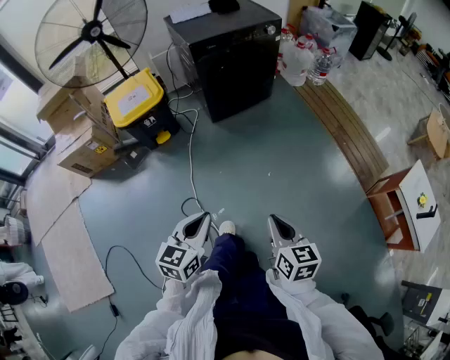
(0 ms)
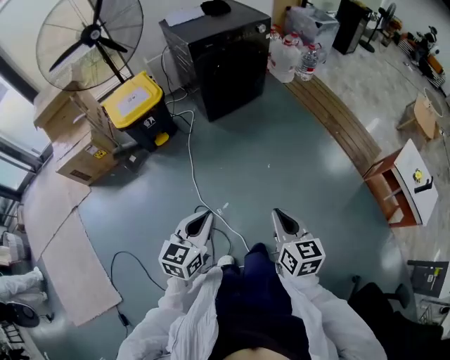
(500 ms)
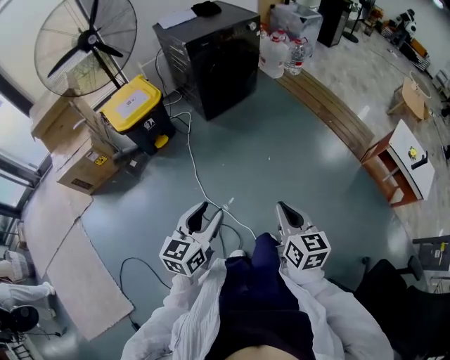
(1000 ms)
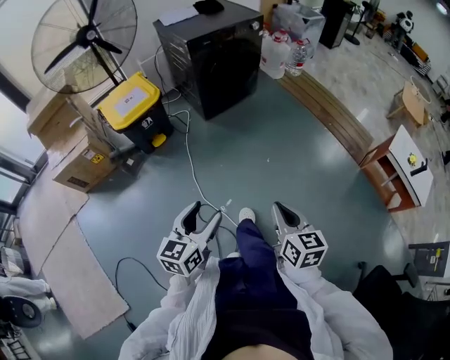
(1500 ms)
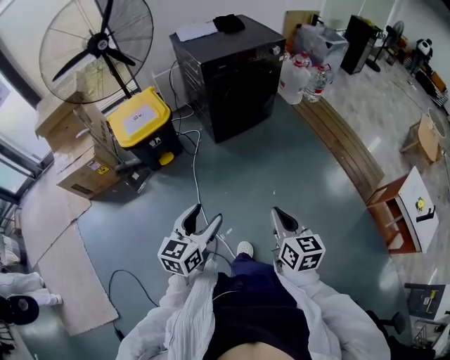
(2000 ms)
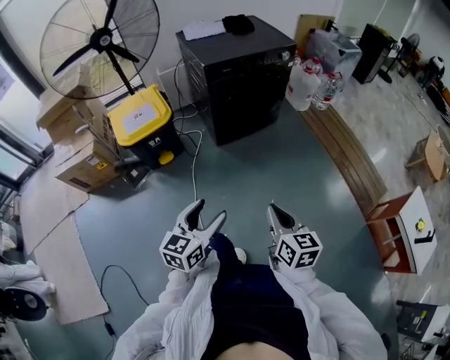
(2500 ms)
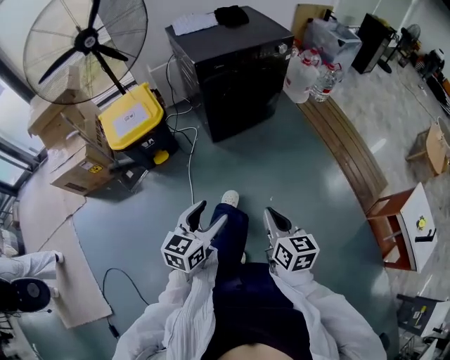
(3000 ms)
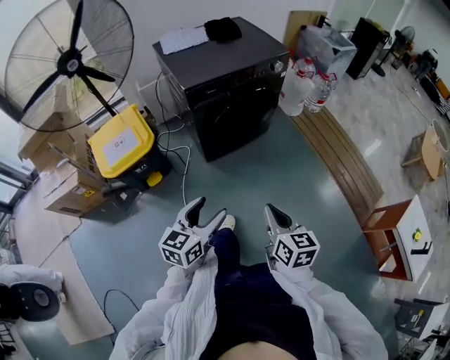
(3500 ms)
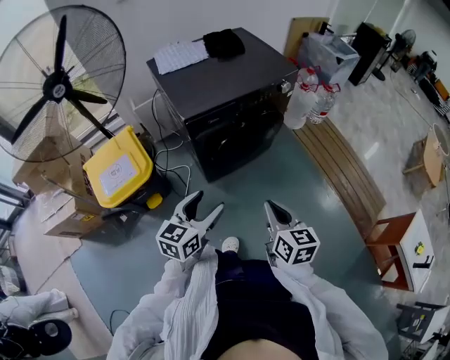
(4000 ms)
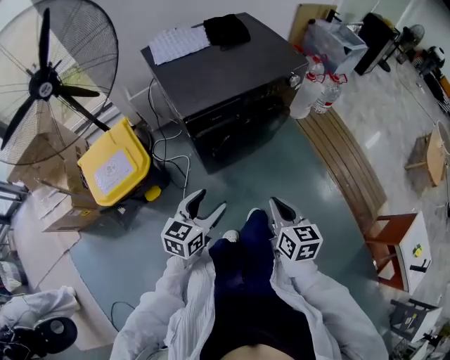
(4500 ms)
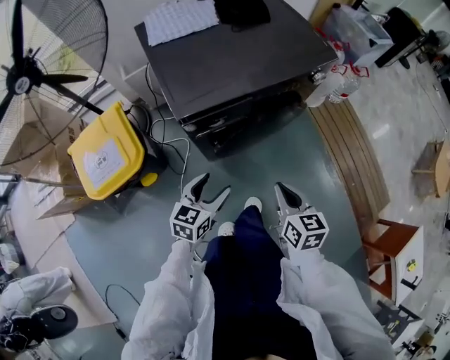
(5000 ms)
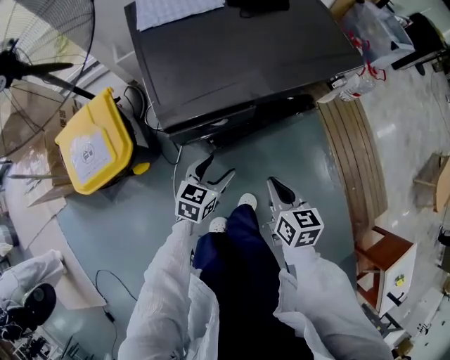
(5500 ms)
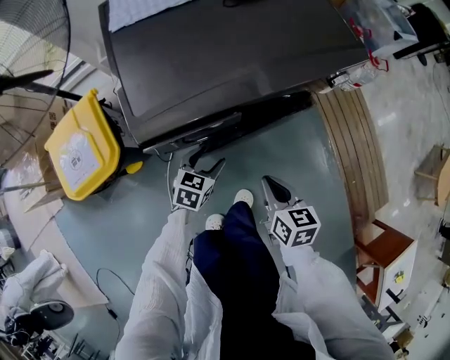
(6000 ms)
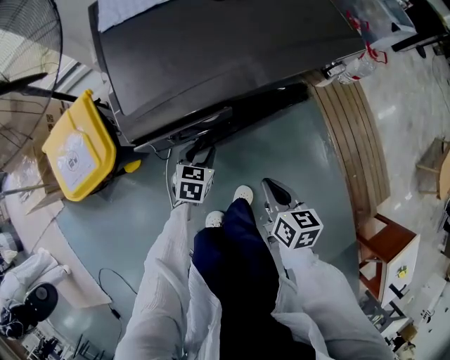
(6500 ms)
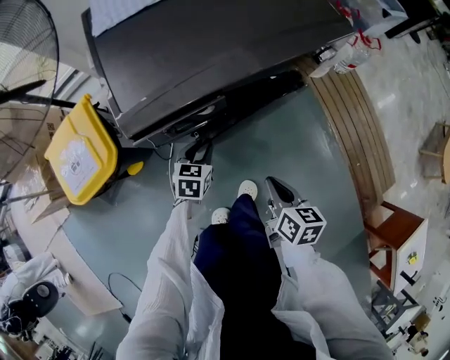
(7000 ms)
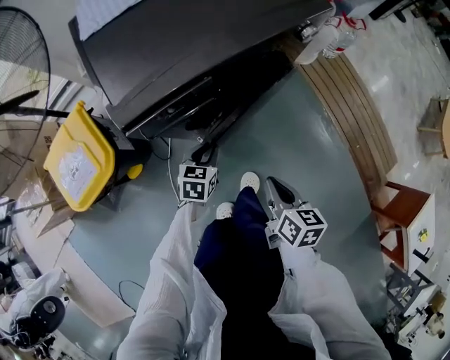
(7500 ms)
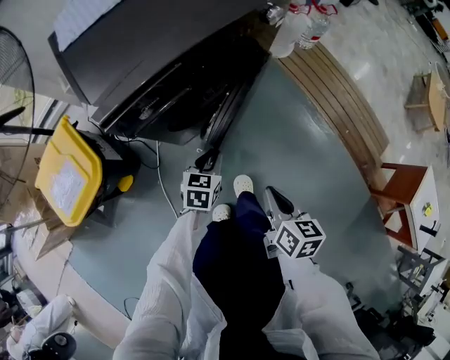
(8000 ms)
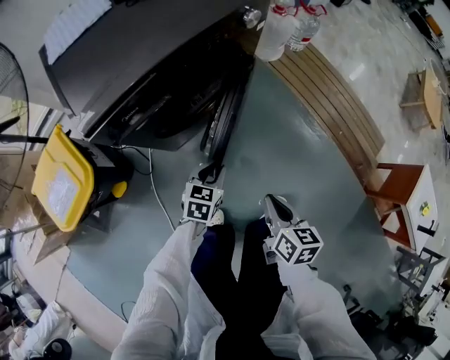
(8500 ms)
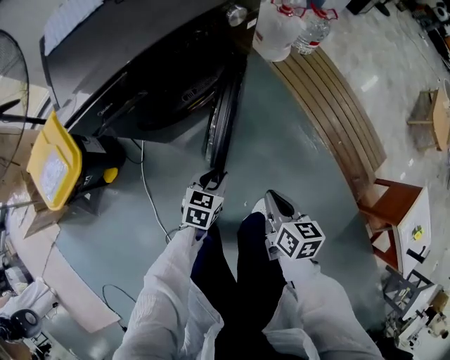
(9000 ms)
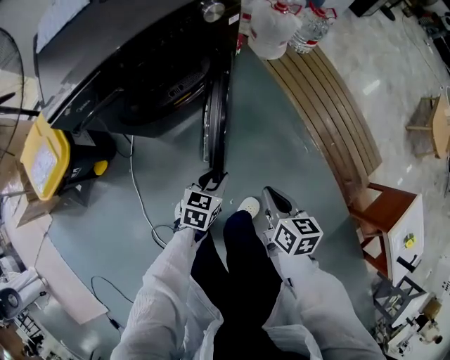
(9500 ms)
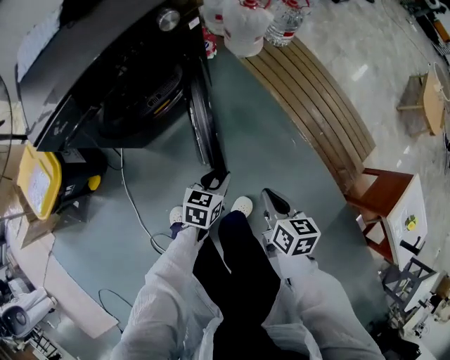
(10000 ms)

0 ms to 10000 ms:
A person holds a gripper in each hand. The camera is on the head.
0 ms to 2000 ms: Both grippers move to the left, approximately 10 cm. The right gripper travels backward and back again, approximately 15 cm each way. Meanwhile the left gripper reaches roughly 10 cm backward, then returns, and opens up.
2000 ms to 4000 ms: The pair of grippers is taken forward, approximately 40 cm.
4000 ms to 6000 ms: The grippers both shift forward and downward by some 40 cm. The left gripper rotates approximately 30 degrees; the right gripper rotates approximately 20 degrees.
6000 ms to 8000 ms: The right gripper moves backward, roughly 20 cm, and changes its angle by about 30 degrees. Meanwhile the left gripper moves backward and to the right, roughly 10 cm, and closes.
8000 ms to 10000 ms: The two grippers go some 30 cm to the right.

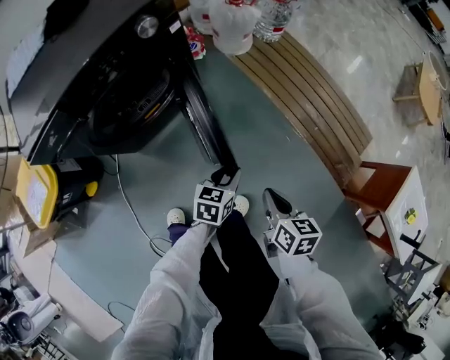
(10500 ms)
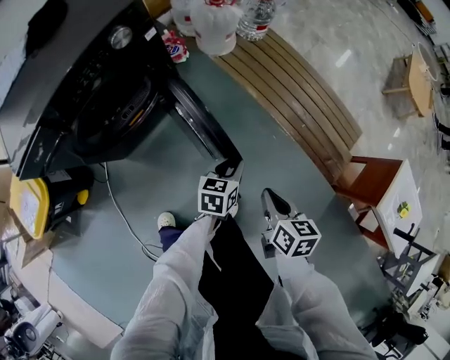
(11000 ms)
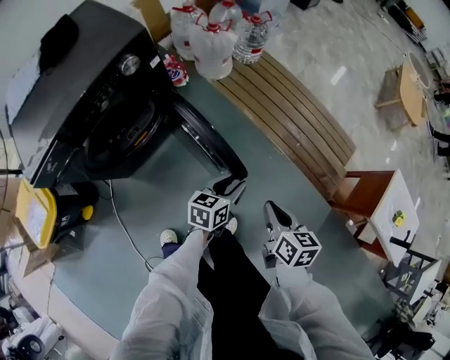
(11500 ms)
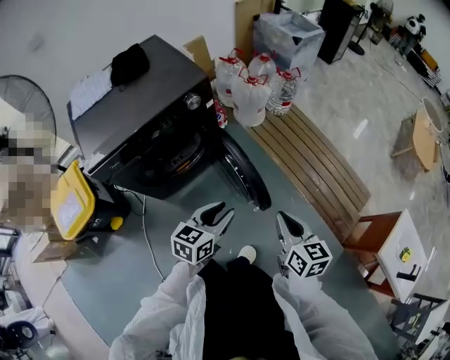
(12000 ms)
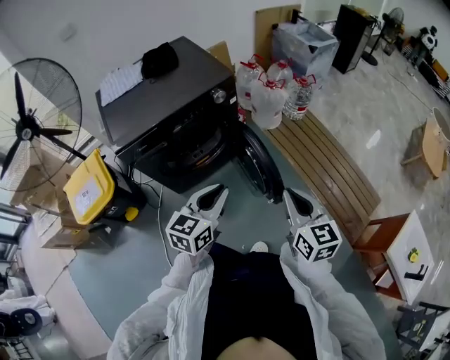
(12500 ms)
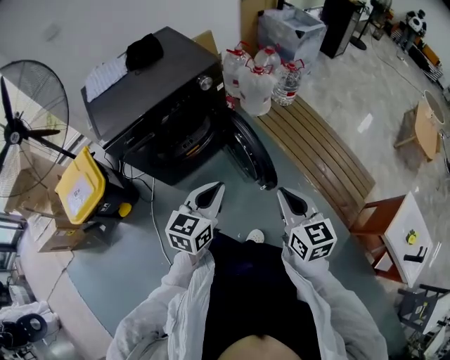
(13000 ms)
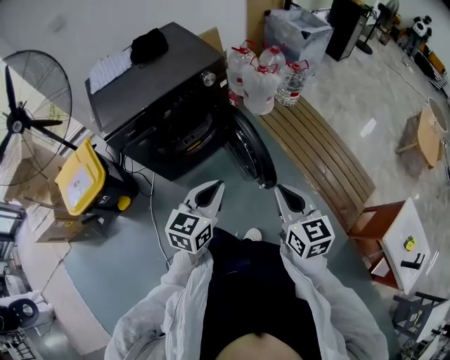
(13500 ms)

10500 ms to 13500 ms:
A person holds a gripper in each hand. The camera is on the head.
10500 ms to 12000 ms: Both grippers travel together upward, some 20 cm. The right gripper rotates about 20 degrees.
12000 ms to 13500 ms: The left gripper moves upward and backward, approximately 10 cm, and closes, while the right gripper shifts some 5 cm upward.

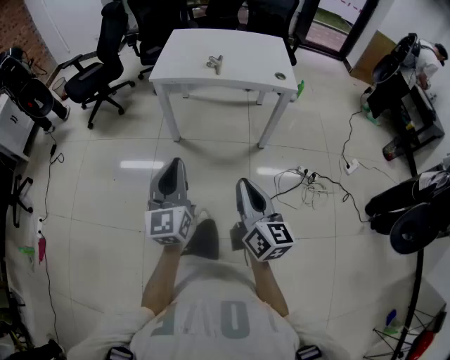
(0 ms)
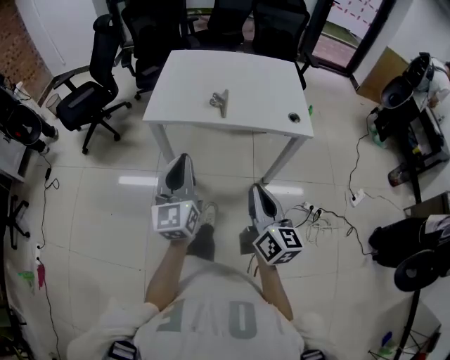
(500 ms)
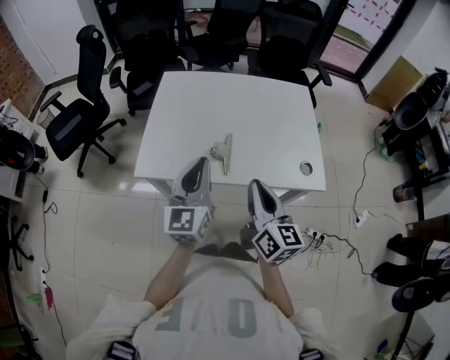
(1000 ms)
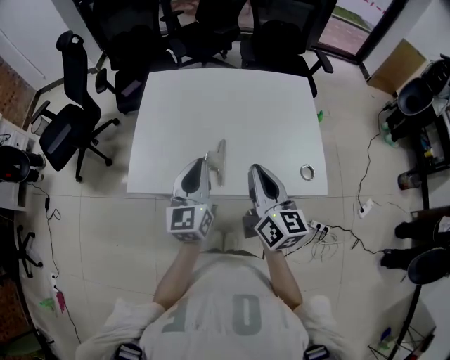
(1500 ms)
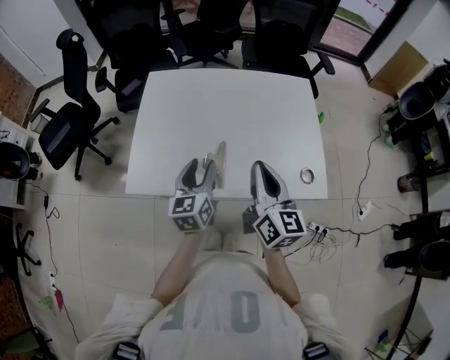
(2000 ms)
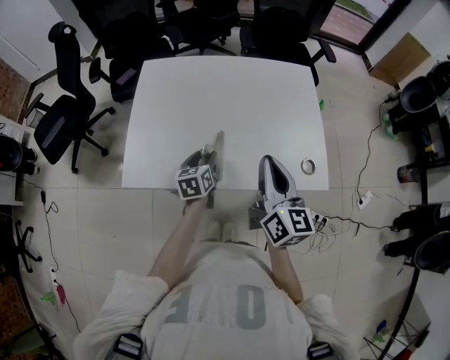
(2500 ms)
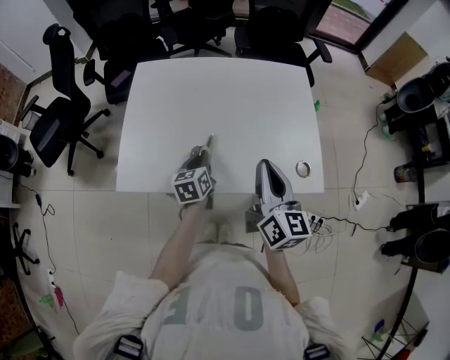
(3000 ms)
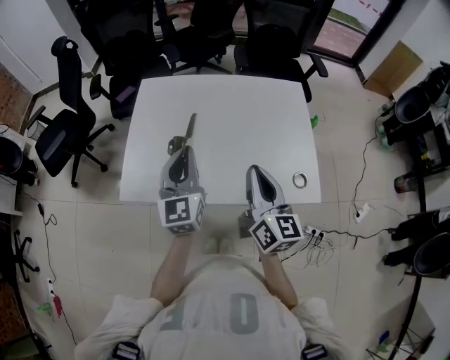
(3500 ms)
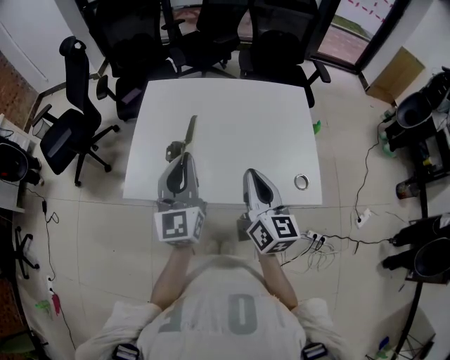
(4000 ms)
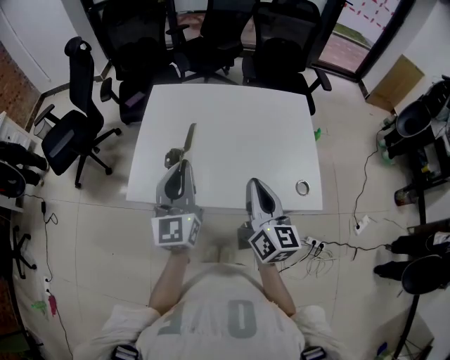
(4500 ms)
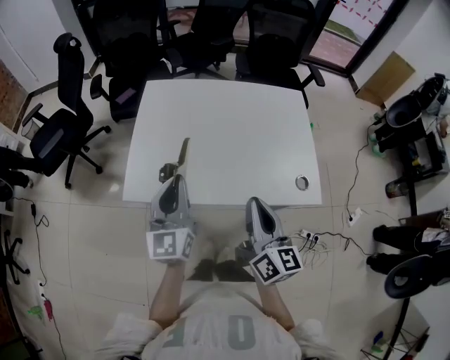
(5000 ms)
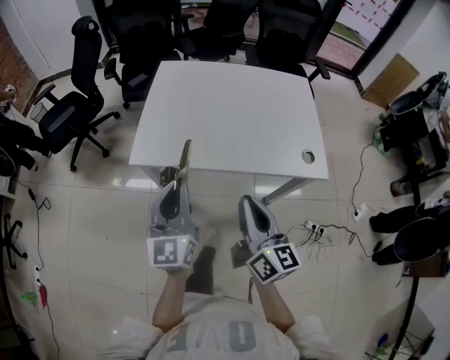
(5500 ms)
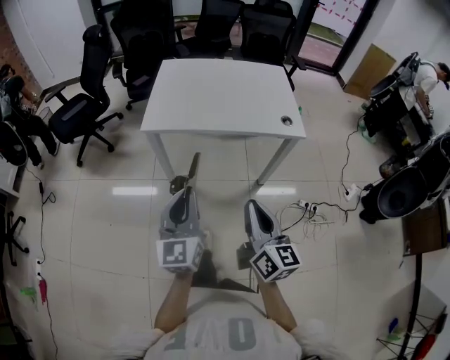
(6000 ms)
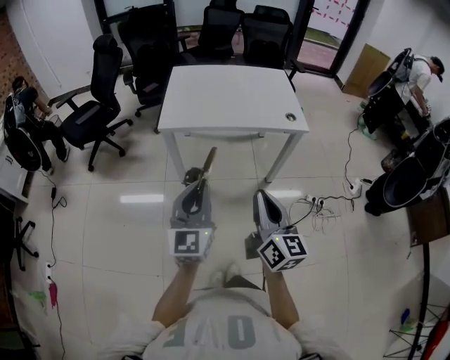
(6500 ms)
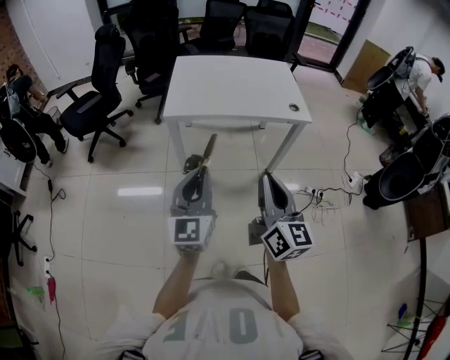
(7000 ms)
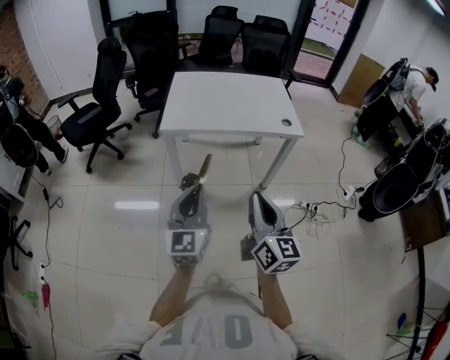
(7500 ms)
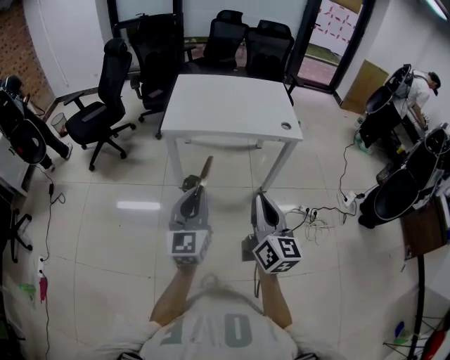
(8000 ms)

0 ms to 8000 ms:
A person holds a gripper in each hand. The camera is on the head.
0 ms to 2000 ms: The two grippers travel together, forward, about 60 cm. The left gripper turns by approximately 30 degrees, and opens its fingers.
2000 ms to 4000 ms: The left gripper heads upward, covering some 15 cm, changes its angle by some 30 degrees, and closes its fingers.
4000 ms to 6000 ms: Both grippers are carried backward, roughly 40 cm.
6000 ms to 8000 ms: The right gripper travels backward and upward by about 10 cm; the left gripper goes some 10 cm backward.

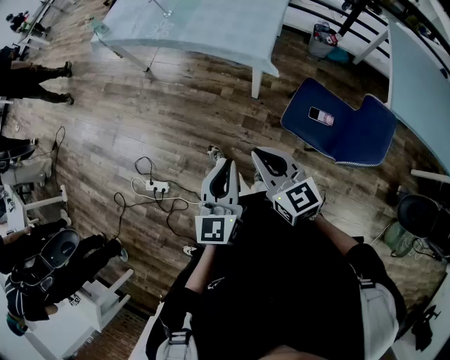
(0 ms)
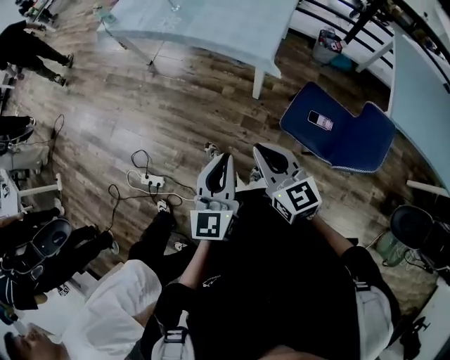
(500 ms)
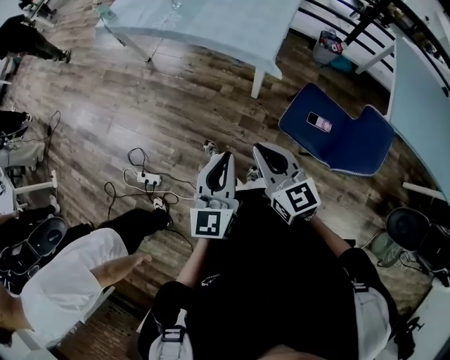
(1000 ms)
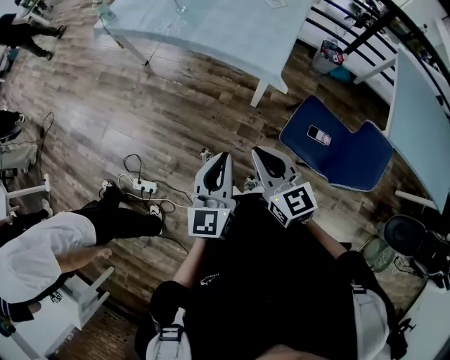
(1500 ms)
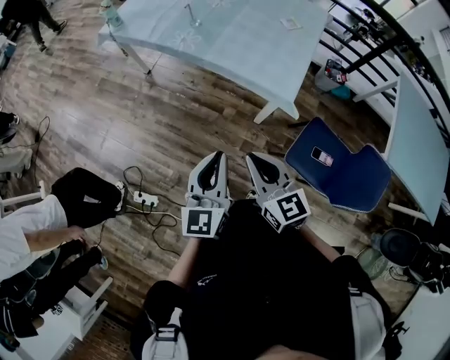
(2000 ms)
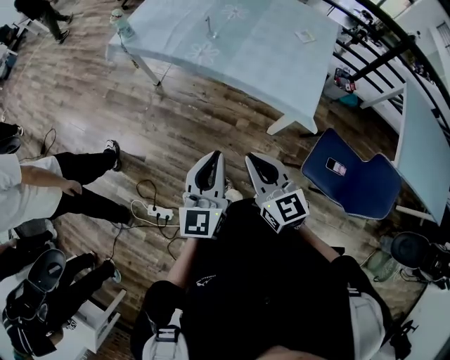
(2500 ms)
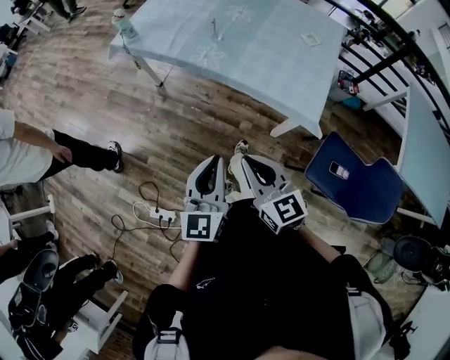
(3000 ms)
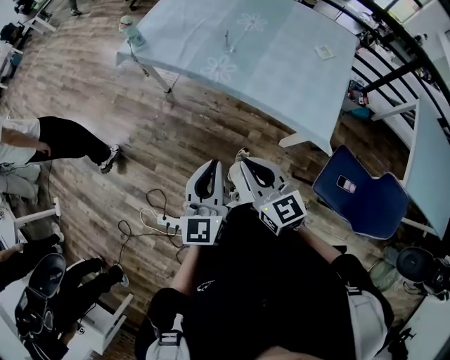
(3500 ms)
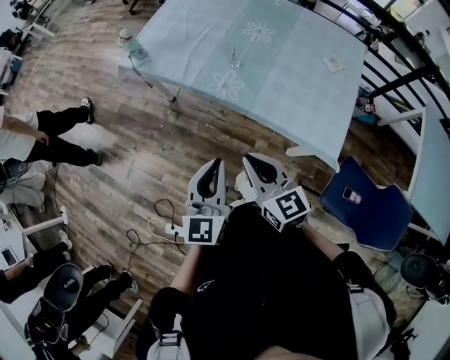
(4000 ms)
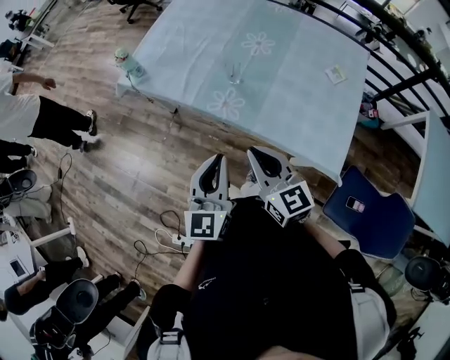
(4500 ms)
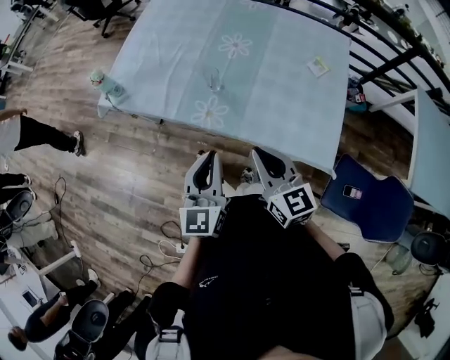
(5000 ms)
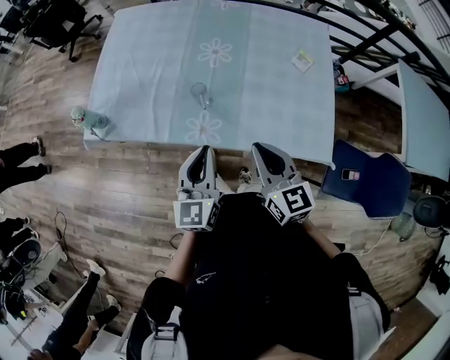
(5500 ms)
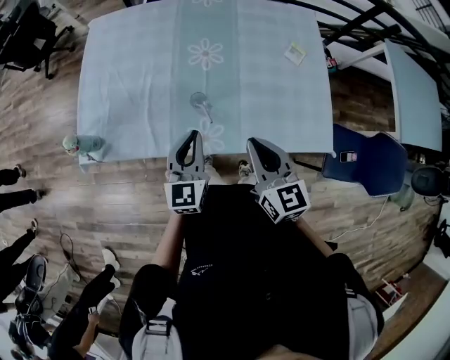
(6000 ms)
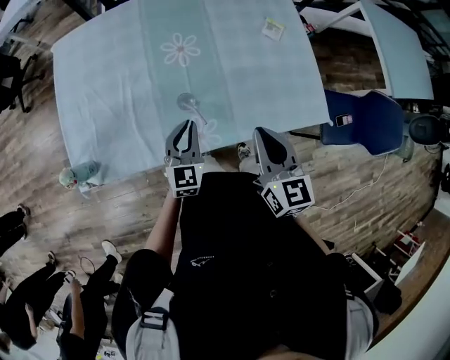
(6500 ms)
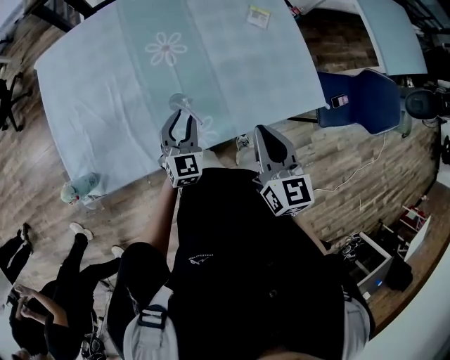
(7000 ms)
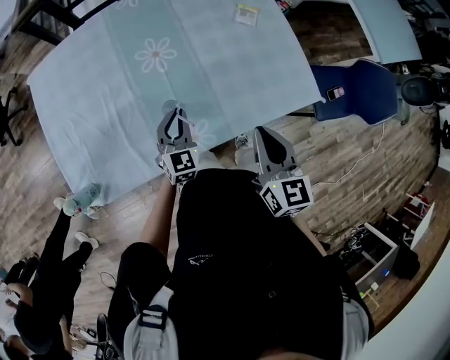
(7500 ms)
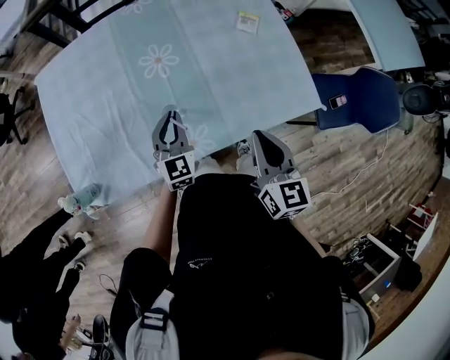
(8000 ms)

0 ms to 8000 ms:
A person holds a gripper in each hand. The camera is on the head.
0 ms to 2000 ms: Both grippers travel together forward and to the left, some 20 cm.
2000 ms to 4000 ms: Both grippers travel together forward and to the left, some 30 cm.
4000 ms to 6000 ms: The left gripper shifts by approximately 35 cm, and changes its angle by about 30 degrees, while the right gripper ends up roughly 25 cm from where it was, and rotates some 40 degrees.
6000 ms to 8000 ms: The left gripper shifts some 15 cm forward and downward. The right gripper is displaced to the right by roughly 5 cm, and swivels some 30 degrees.
